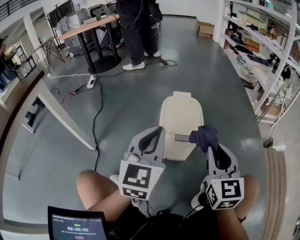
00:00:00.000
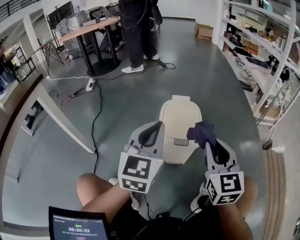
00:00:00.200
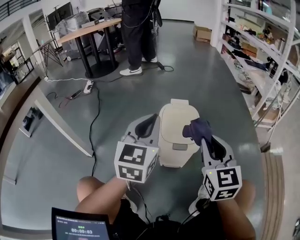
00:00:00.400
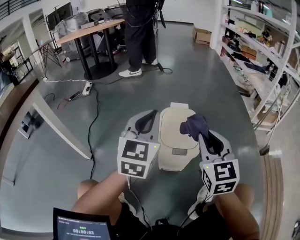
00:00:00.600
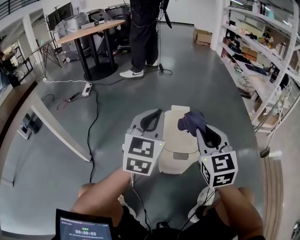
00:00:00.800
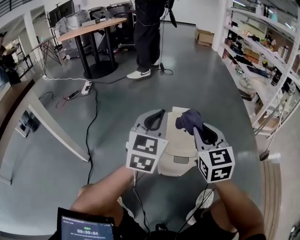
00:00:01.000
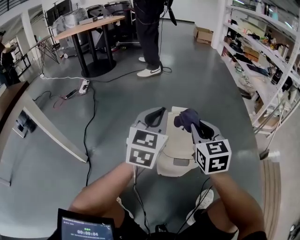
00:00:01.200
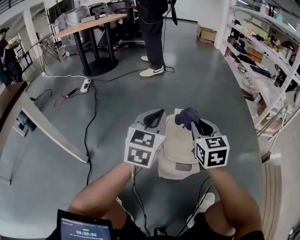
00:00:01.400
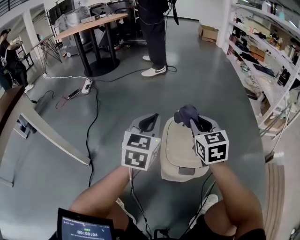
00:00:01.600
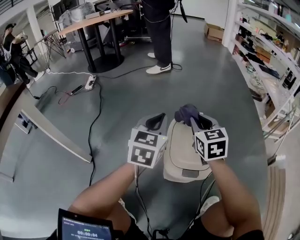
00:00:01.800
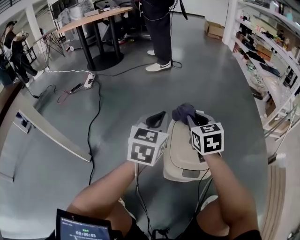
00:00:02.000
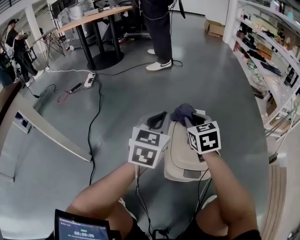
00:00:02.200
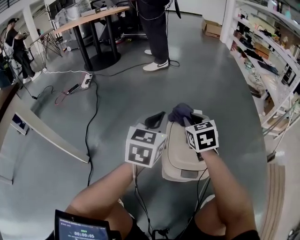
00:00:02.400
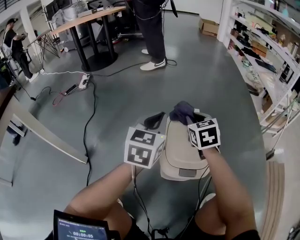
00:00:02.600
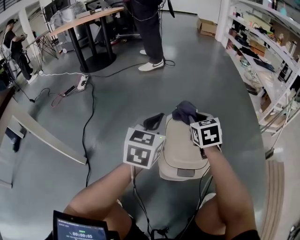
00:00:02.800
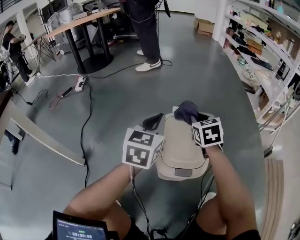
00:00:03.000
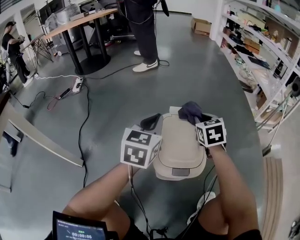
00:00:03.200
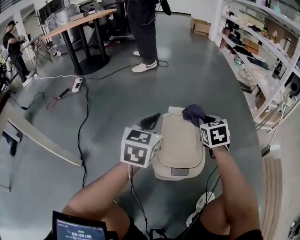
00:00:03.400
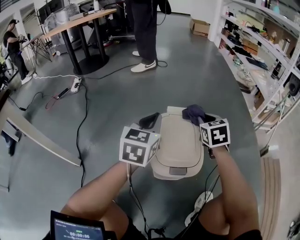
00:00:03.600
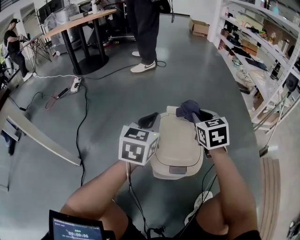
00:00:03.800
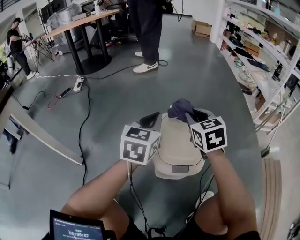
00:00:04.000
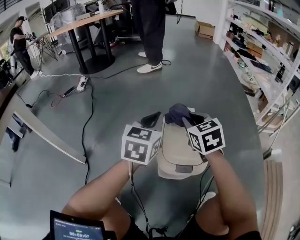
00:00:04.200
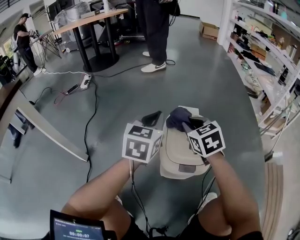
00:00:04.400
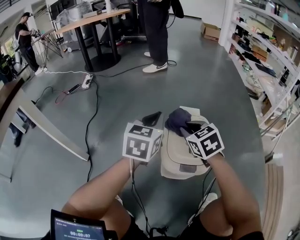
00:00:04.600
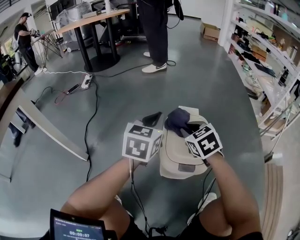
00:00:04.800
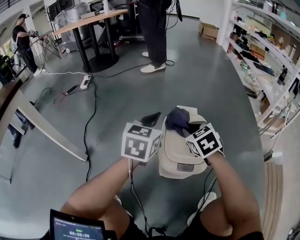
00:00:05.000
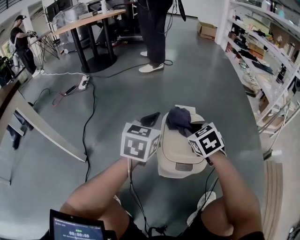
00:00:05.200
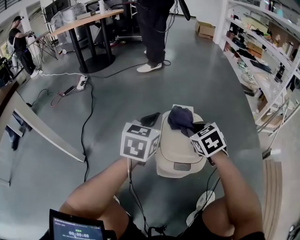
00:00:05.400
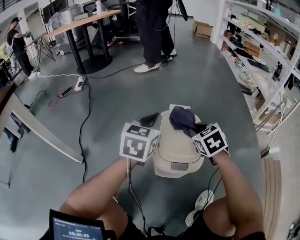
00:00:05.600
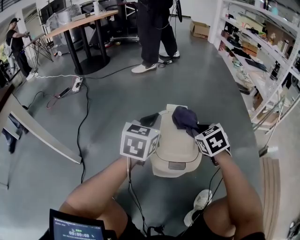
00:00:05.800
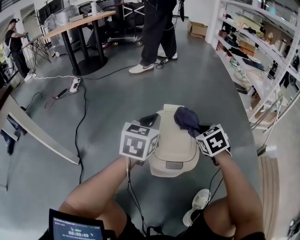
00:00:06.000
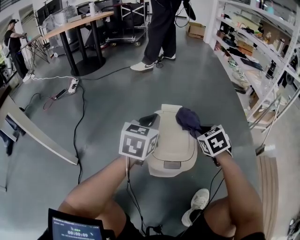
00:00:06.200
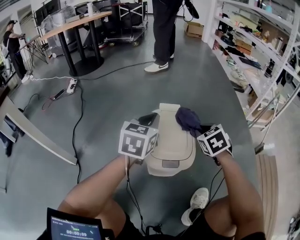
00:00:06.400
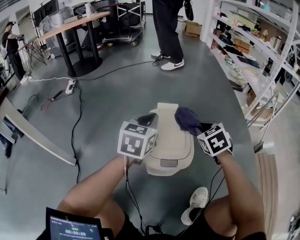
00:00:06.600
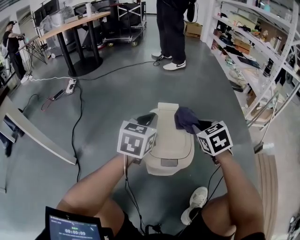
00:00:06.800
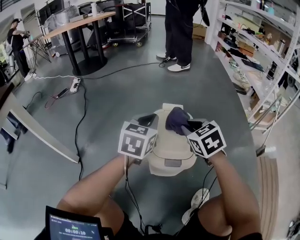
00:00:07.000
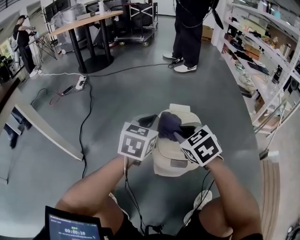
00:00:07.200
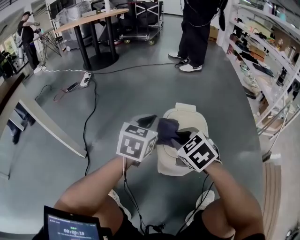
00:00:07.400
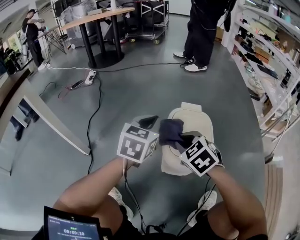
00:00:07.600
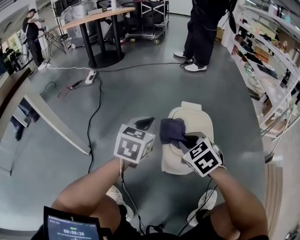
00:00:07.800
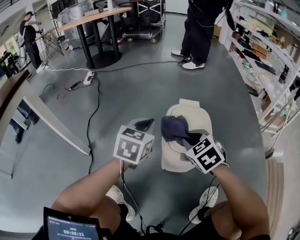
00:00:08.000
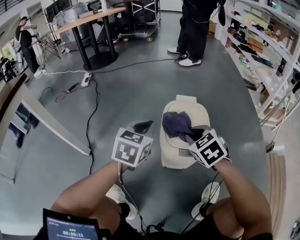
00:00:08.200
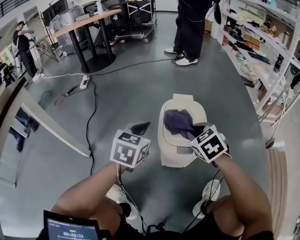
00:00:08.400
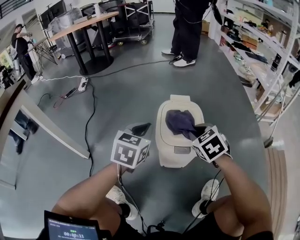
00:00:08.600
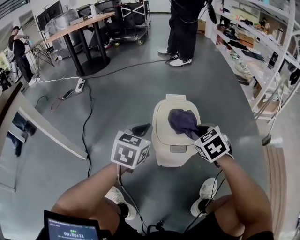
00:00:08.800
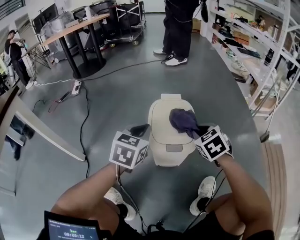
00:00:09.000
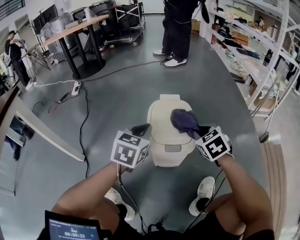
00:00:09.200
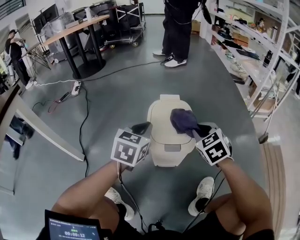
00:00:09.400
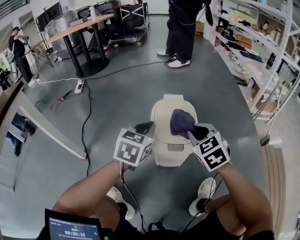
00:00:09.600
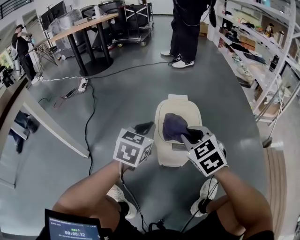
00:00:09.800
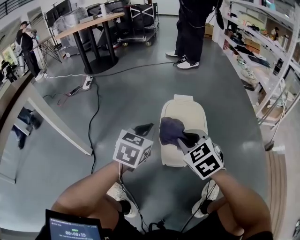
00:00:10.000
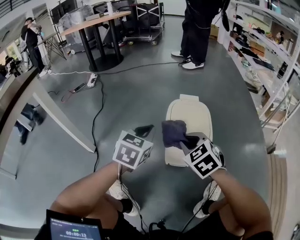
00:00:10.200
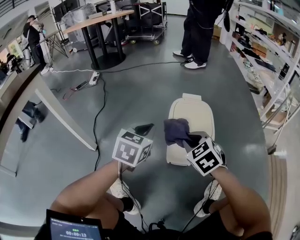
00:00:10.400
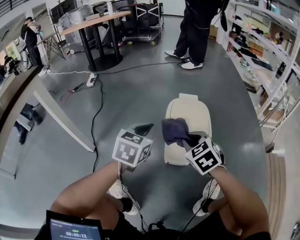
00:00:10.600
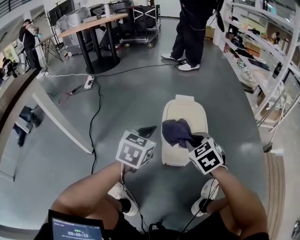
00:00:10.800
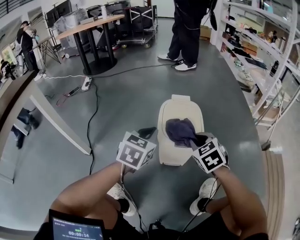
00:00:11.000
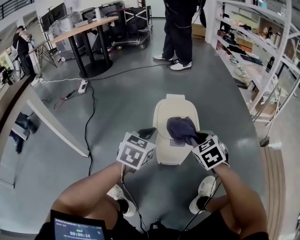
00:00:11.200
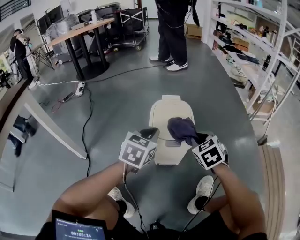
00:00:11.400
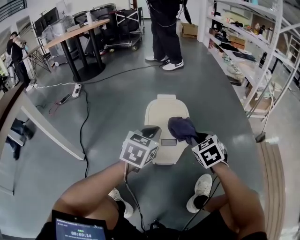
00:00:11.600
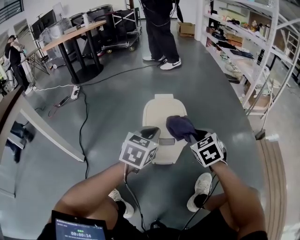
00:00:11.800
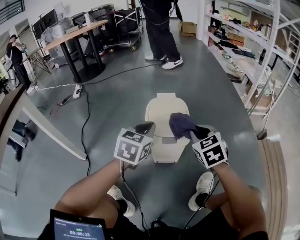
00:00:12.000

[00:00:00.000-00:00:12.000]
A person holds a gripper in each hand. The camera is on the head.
00:00:00.000 to 00:00:01.600: Both grippers move forward, some 25 cm.
00:00:01.600 to 00:00:03.000: The left gripper ends up some 5 cm from where it was; the right gripper is displaced downward and forward by about 10 cm.
00:00:03.000 to 00:00:04.400: The right gripper shifts roughly 10 cm backward and to the left.
00:00:04.400 to 00:00:06.000: The right gripper travels to the right by some 10 cm.
00:00:06.000 to 00:00:07.600: The left gripper goes some 5 cm to the left. Meanwhile the right gripper moves to the left and backward, approximately 15 cm, and turns by approximately 20 degrees.
00:00:07.600 to 00:00:09.000: The left gripper shifts roughly 5 cm backward. The right gripper is displaced to the right by approximately 15 cm, and swivels roughly 20 degrees.
00:00:09.000 to 00:00:10.400: The left gripper travels to the left by roughly 5 cm, while the right gripper heads to the left and backward, covering some 15 cm.
00:00:10.400 to 00:00:12.000: Both grippers move to the right, approximately 10 cm. The right gripper rotates some 20 degrees.

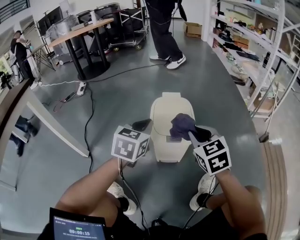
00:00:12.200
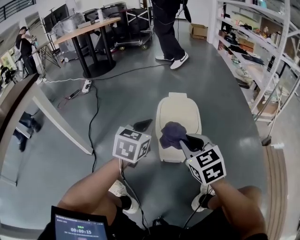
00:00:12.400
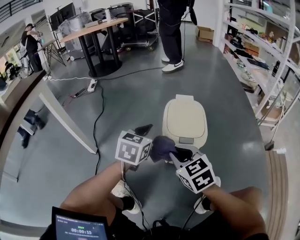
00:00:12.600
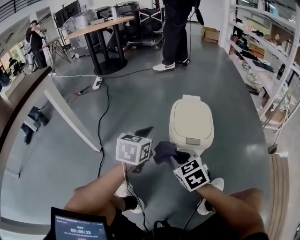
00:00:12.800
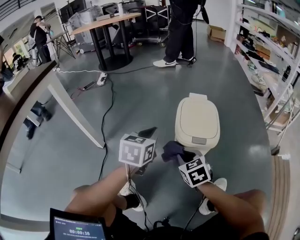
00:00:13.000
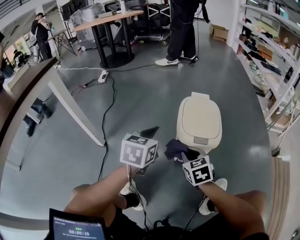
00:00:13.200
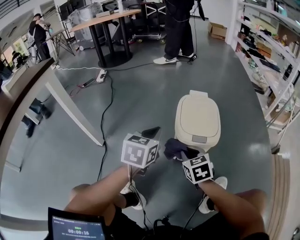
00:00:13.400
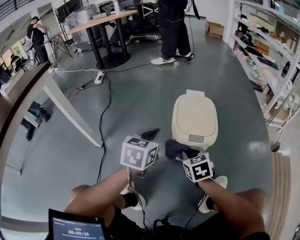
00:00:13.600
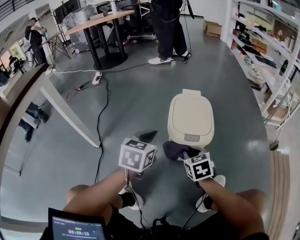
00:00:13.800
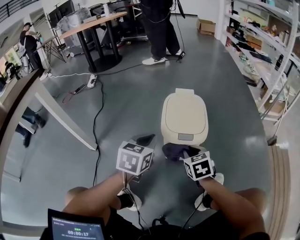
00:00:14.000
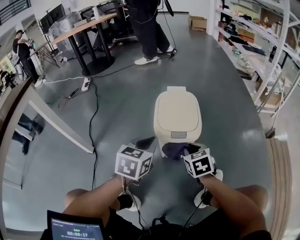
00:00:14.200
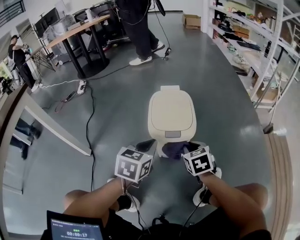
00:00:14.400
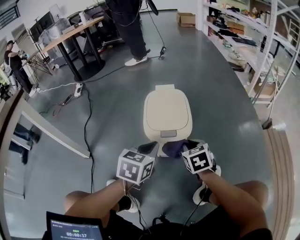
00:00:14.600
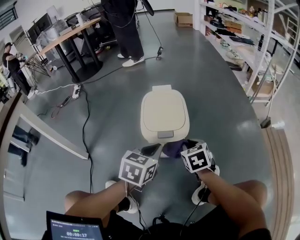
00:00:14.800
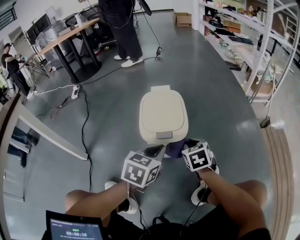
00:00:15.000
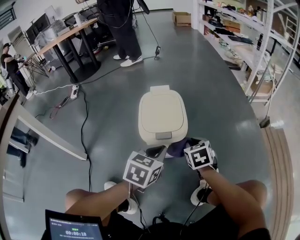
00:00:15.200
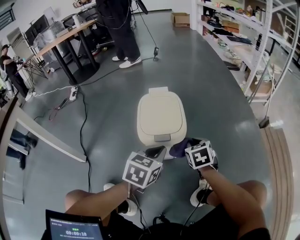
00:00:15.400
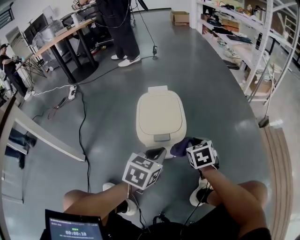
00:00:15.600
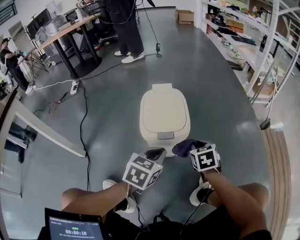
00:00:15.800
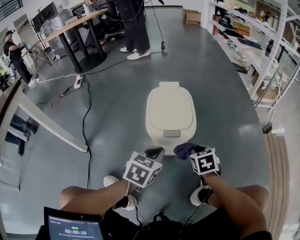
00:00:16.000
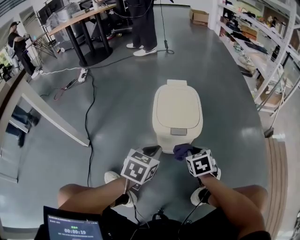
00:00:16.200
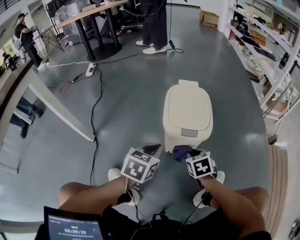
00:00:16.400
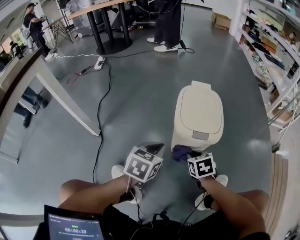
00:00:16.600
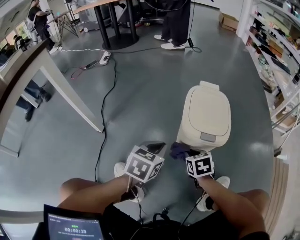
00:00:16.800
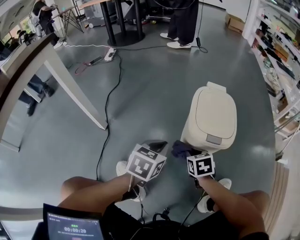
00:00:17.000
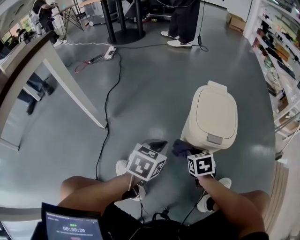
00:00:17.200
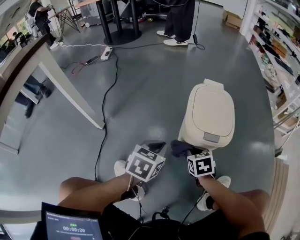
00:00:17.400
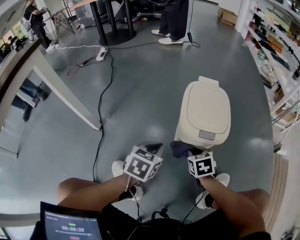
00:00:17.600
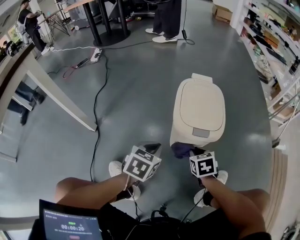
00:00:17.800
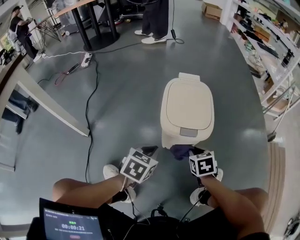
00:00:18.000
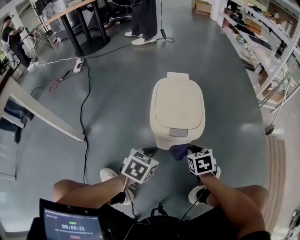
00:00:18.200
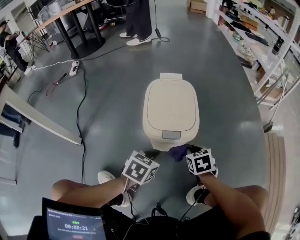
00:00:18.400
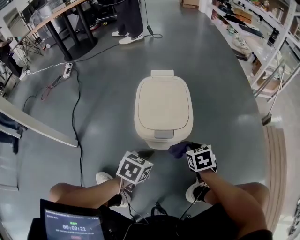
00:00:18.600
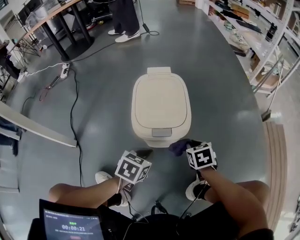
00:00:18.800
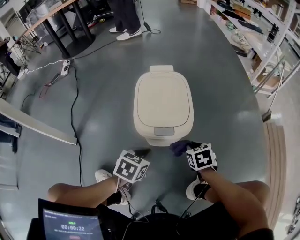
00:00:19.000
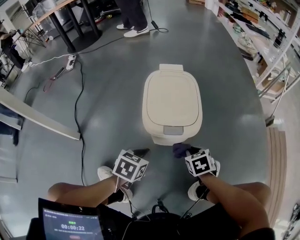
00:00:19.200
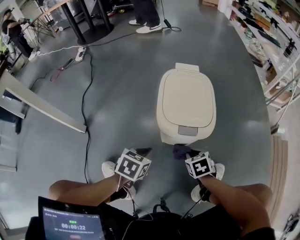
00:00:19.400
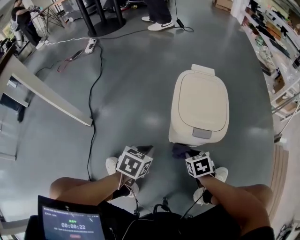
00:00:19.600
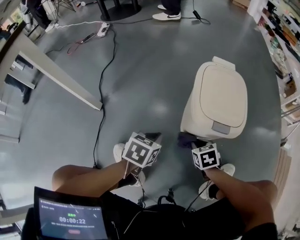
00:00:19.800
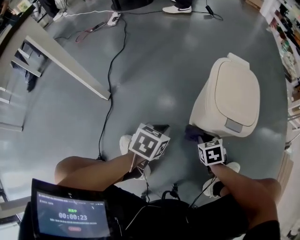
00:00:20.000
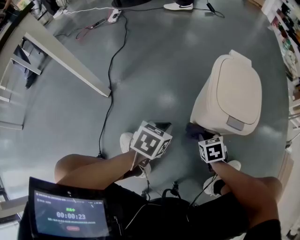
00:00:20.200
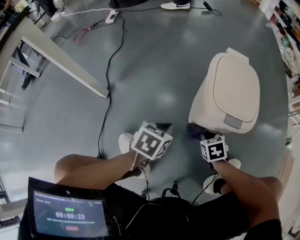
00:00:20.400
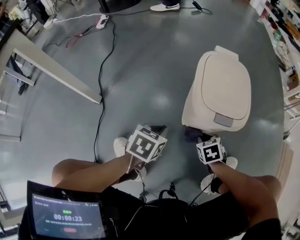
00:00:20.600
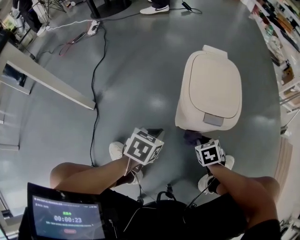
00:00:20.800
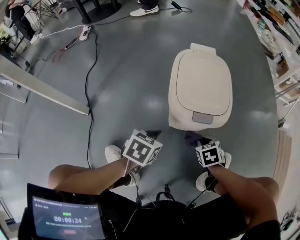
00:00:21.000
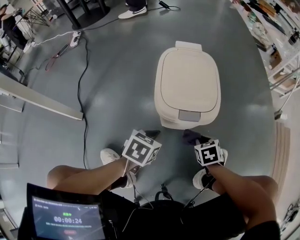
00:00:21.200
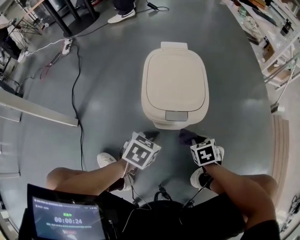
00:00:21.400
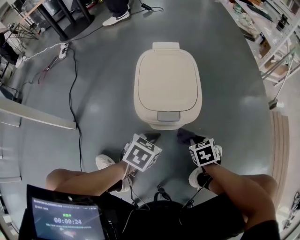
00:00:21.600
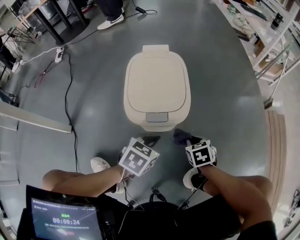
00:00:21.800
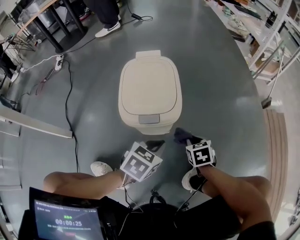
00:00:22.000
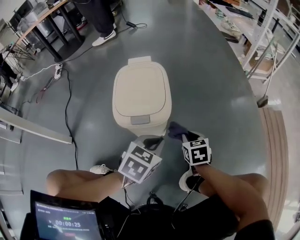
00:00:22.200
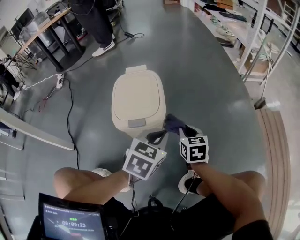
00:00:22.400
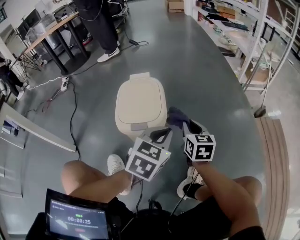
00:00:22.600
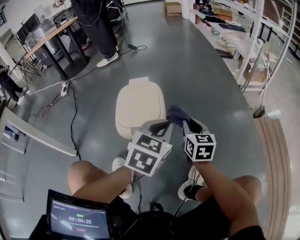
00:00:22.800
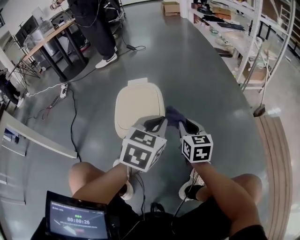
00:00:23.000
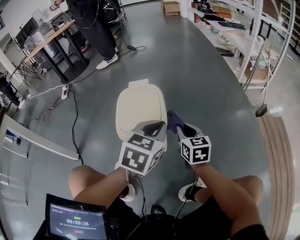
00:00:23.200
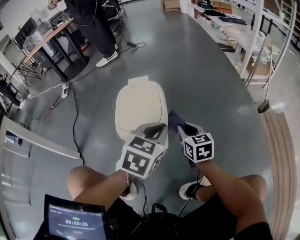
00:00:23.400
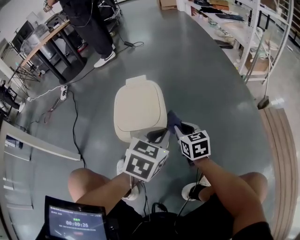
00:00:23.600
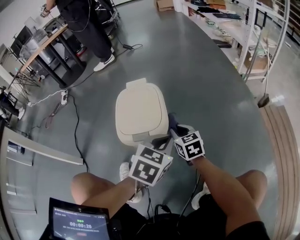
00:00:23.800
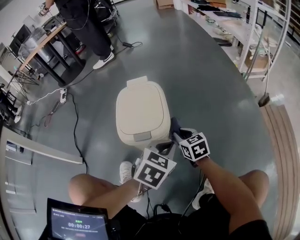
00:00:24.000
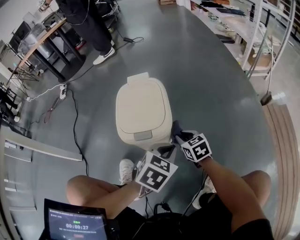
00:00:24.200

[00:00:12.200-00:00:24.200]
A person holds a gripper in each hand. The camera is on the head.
00:00:12.200 to 00:00:13.800: The right gripper shifts some 15 cm downward and to the left; the left gripper is displaced to the left by roughly 5 cm.
00:00:13.800 to 00:00:15.200: Both grippers move to the right, roughly 15 cm.
00:00:15.200 to 00:00:16.600: The right gripper heads to the left, downward and backward, covering roughly 15 cm. The left gripper is displaced to the left by about 15 cm.
00:00:16.600 to 00:00:18.200: The right gripper moves to the right, some 10 cm; the left gripper heads to the right and downward, covering approximately 10 cm.
00:00:18.200 to 00:00:19.800: The two grippers go some 10 cm to the left and downward.
00:00:19.800 to 00:00:21.200: Both grippers travel together to the right, some 10 cm.
00:00:21.200 to 00:00:22.600: The left gripper moves to the right and upward, roughly 25 cm, and swivels approximately 30 degrees. Meanwhile the right gripper moves upward, forward and to the right, approximately 20 cm, and points its fingers approximately 40 degrees further upward.
00:00:22.600 to 00:00:24.200: The right gripper moves downward and to the left, roughly 10 cm, and rotates some 30 degrees, while the left gripper goes approximately 5 cm downward.
